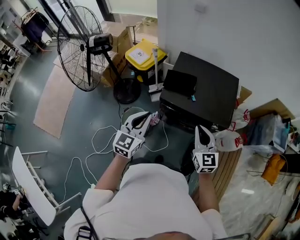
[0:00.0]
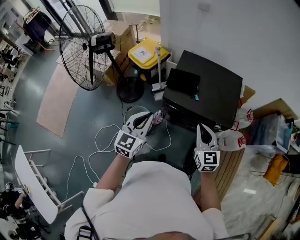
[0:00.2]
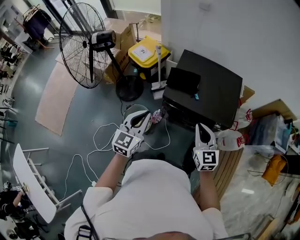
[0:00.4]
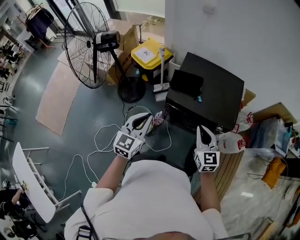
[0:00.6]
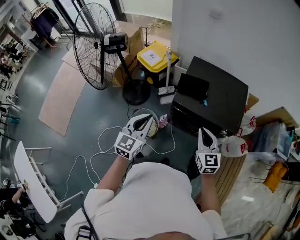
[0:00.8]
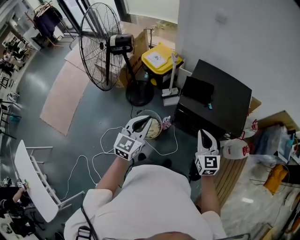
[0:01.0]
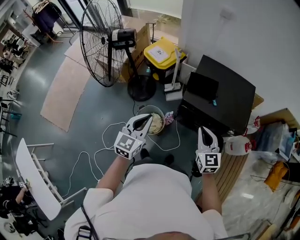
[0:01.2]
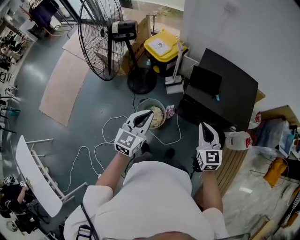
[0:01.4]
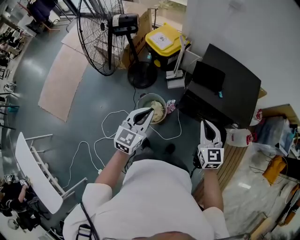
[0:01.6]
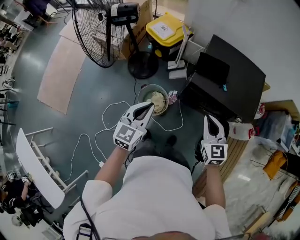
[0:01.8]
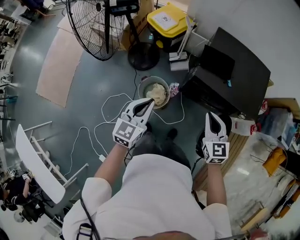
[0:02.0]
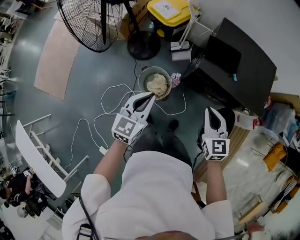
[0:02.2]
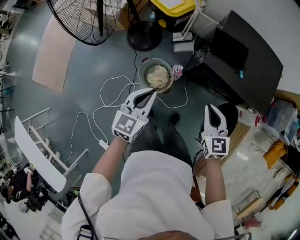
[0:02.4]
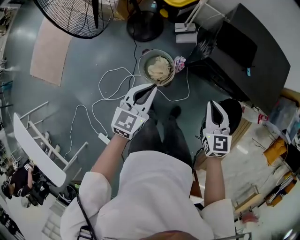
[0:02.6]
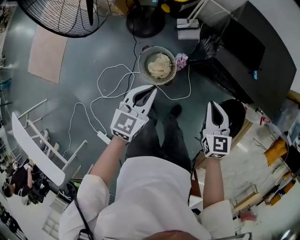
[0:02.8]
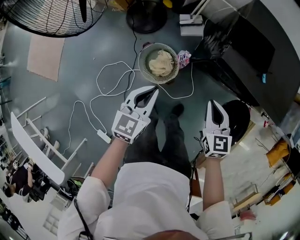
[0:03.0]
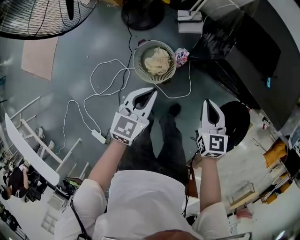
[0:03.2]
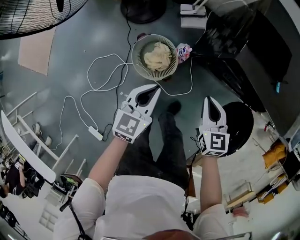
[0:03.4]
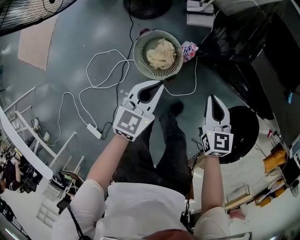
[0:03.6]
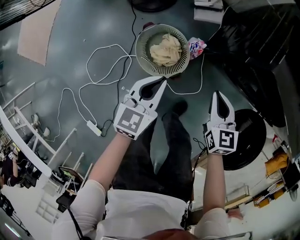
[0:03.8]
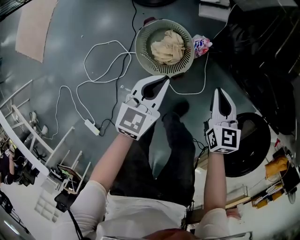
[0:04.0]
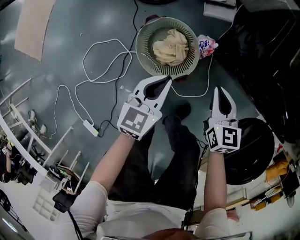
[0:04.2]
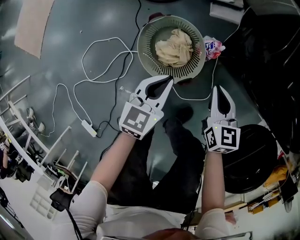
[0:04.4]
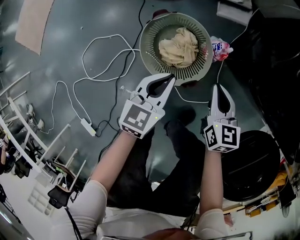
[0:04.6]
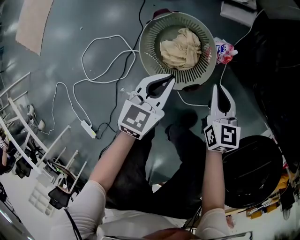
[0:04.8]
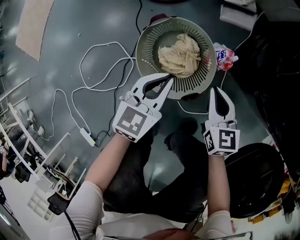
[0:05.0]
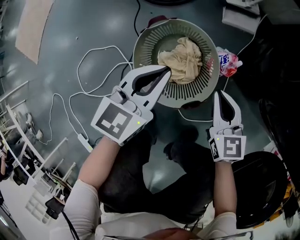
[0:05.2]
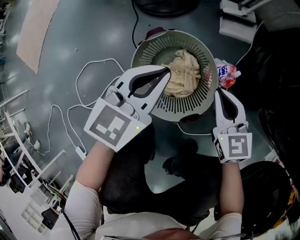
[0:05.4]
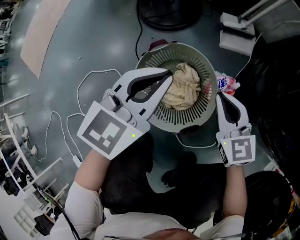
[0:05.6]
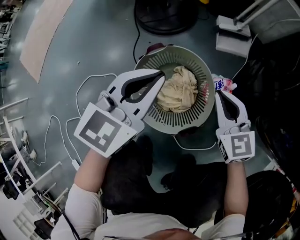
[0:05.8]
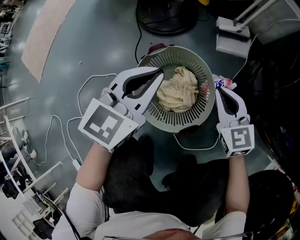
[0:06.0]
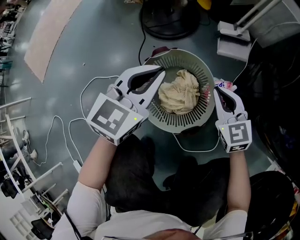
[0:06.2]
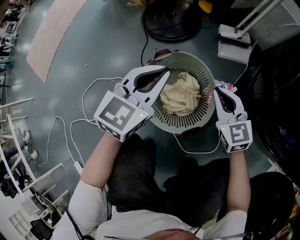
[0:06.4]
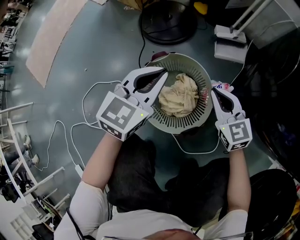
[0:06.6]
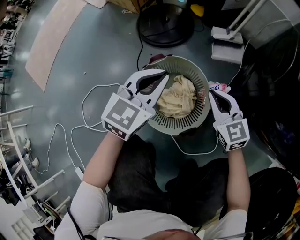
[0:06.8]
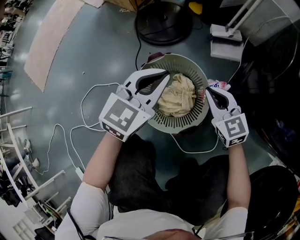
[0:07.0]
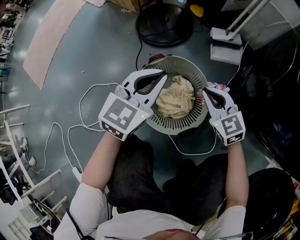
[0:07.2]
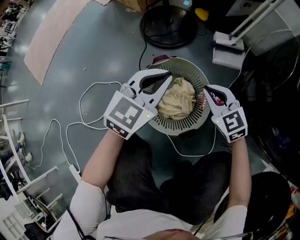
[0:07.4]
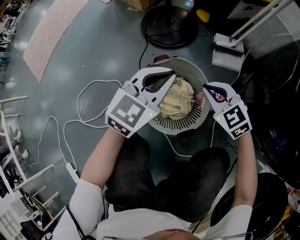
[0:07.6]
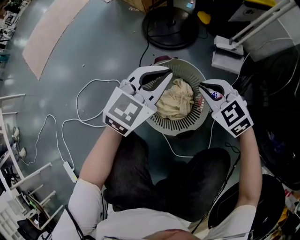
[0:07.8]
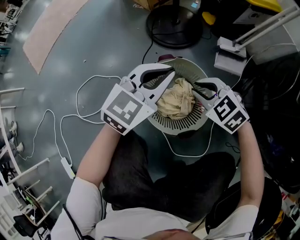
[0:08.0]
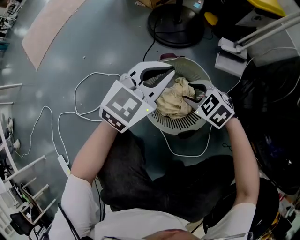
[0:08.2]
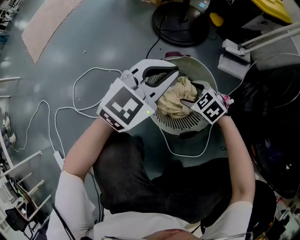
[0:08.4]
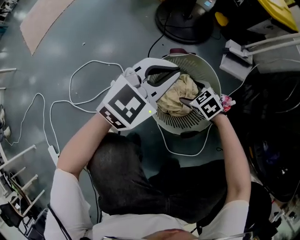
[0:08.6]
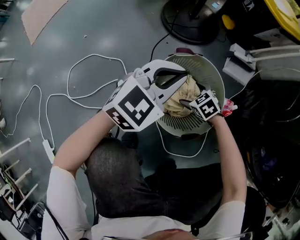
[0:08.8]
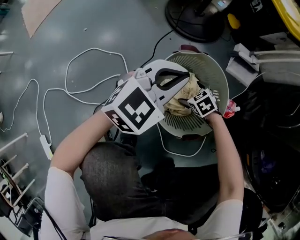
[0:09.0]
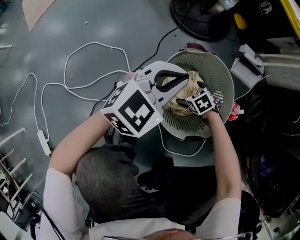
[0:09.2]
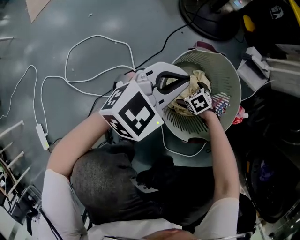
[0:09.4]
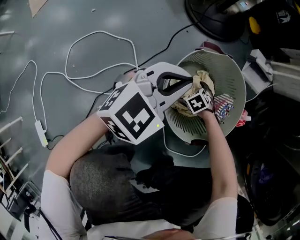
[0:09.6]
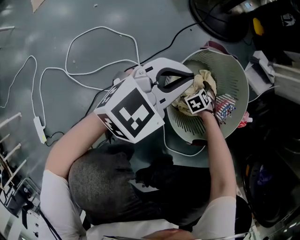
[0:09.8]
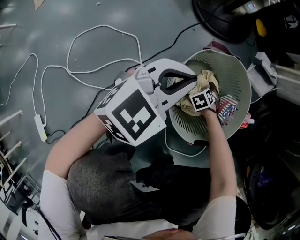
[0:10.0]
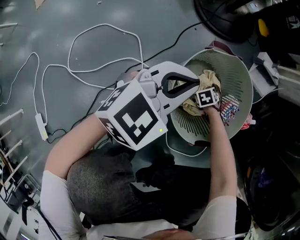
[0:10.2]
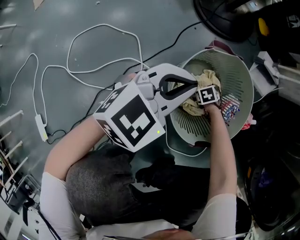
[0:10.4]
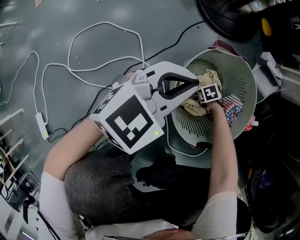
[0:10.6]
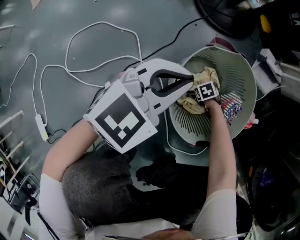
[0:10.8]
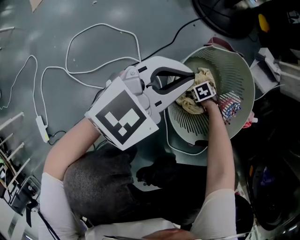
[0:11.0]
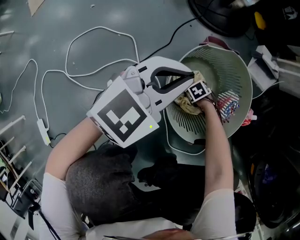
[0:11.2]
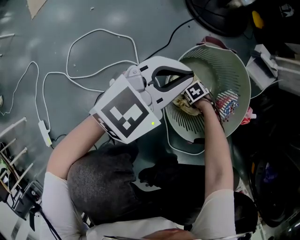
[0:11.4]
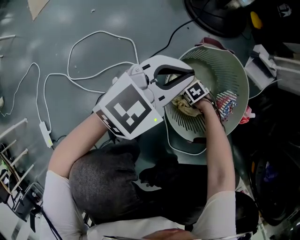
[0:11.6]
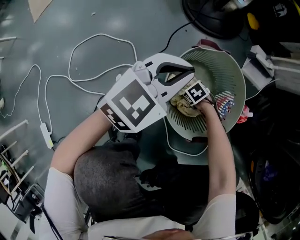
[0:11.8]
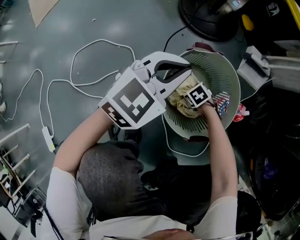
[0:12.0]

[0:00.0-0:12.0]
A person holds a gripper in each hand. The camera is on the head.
0:00.0 to 0:01.6: Both grippers travel together to the left, approximately 15 cm.
0:01.6 to 0:03.0: Both grippers travel together downward, approximately 25 cm.
0:03.0 to 0:04.4: Both grippers travel together downward, some 35 cm.
0:04.4 to 0:06.0: The left gripper goes roughly 10 cm forward and to the left. The right gripper goes roughly 15 cm downward and forward, and turns by about 30 degrees.
0:06.0 to 0:07.6: The right gripper heads to the left, covering about 5 cm, and turns by about 30 degrees.
0:07.6 to 0:09.0: The left gripper shifts roughly 10 cm to the left and downward. The right gripper is displaced downward by roughly 25 cm, points its fingers about 30 degrees further downward, and opens.
0:09.0 to 0:10.4: The right gripper shifts some 15 cm downward. Meanwhile the left gripper goes approximately 5 cm downward.
0:10.4 to 0:12.0: The left gripper ends up some 5 cm from where it was. Meanwhile the right gripper heads upward, covering about 10 cm, and closes up.

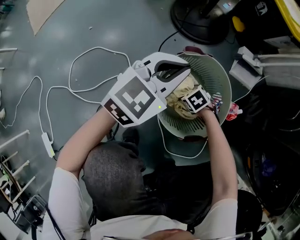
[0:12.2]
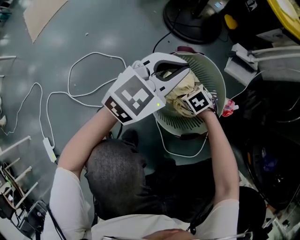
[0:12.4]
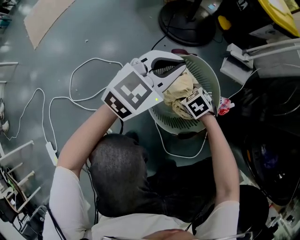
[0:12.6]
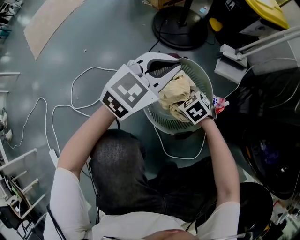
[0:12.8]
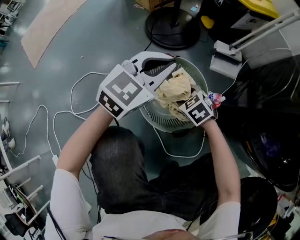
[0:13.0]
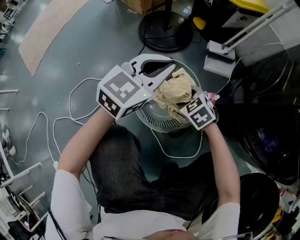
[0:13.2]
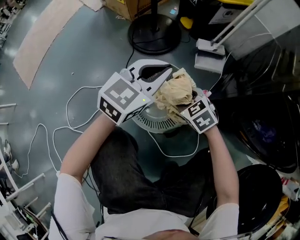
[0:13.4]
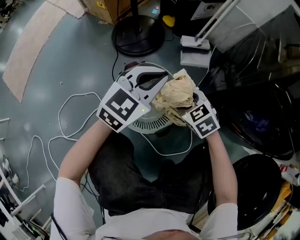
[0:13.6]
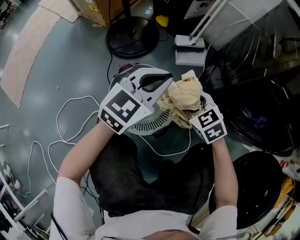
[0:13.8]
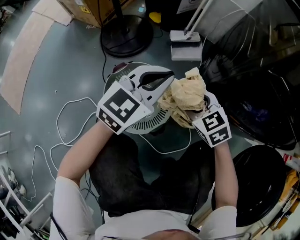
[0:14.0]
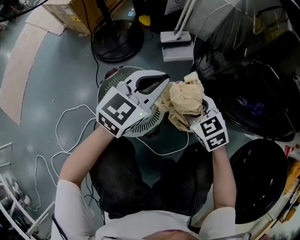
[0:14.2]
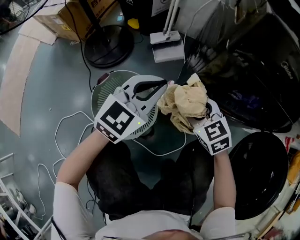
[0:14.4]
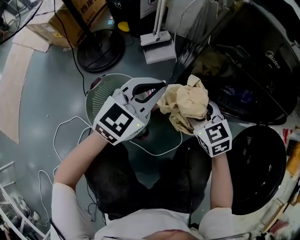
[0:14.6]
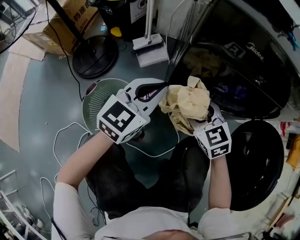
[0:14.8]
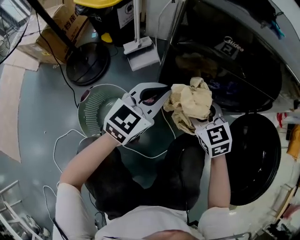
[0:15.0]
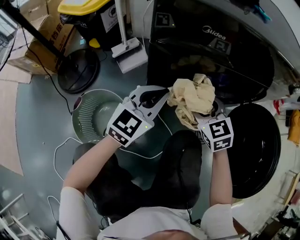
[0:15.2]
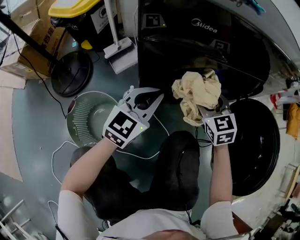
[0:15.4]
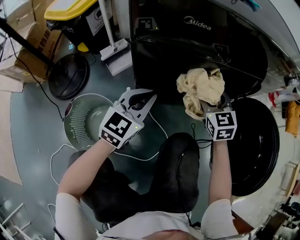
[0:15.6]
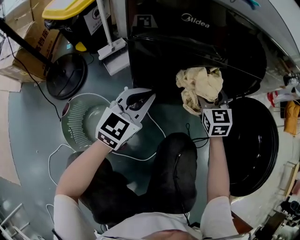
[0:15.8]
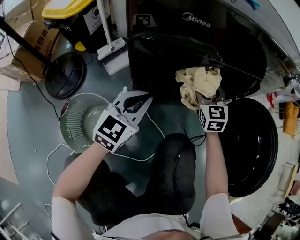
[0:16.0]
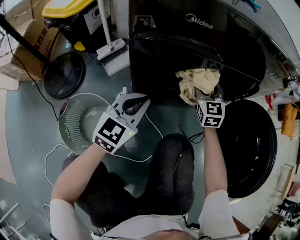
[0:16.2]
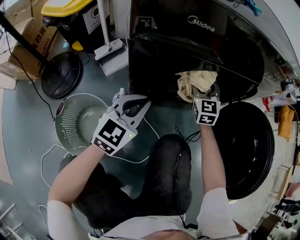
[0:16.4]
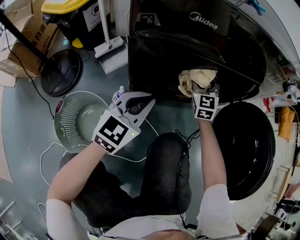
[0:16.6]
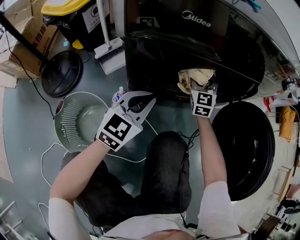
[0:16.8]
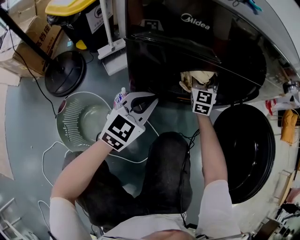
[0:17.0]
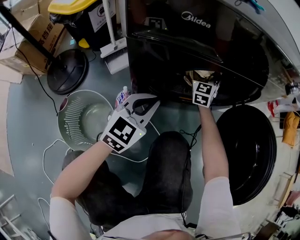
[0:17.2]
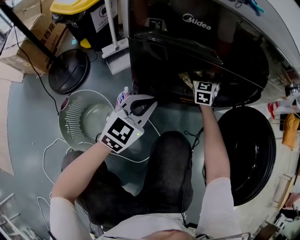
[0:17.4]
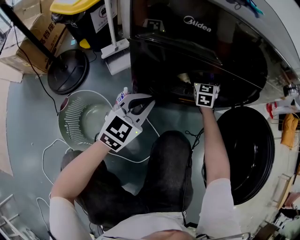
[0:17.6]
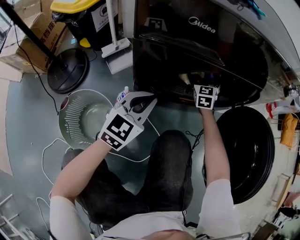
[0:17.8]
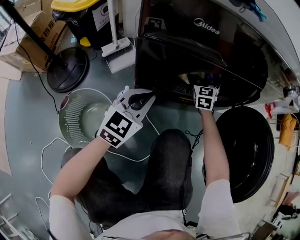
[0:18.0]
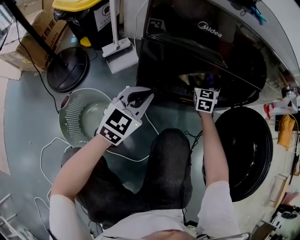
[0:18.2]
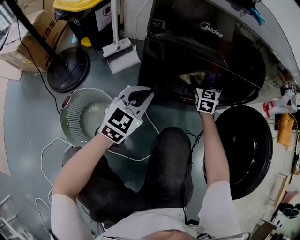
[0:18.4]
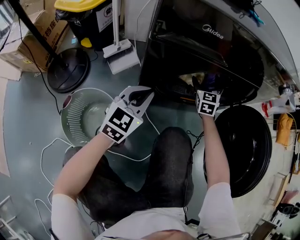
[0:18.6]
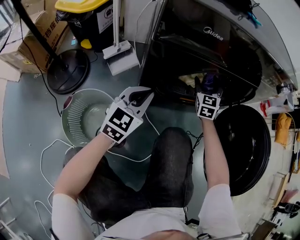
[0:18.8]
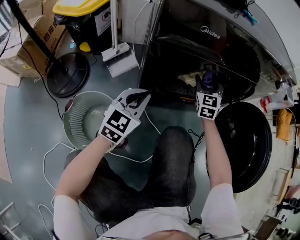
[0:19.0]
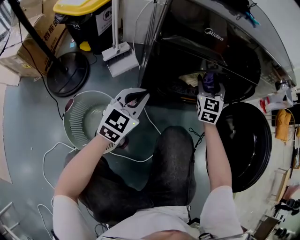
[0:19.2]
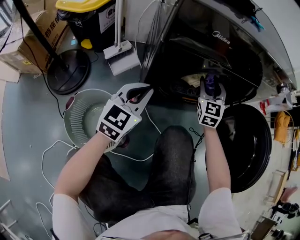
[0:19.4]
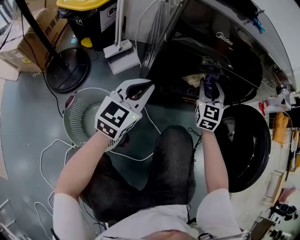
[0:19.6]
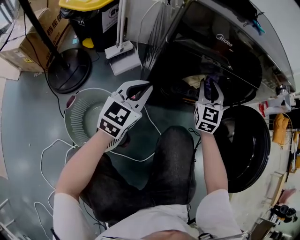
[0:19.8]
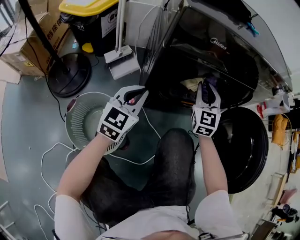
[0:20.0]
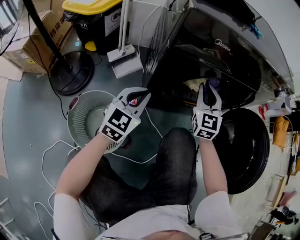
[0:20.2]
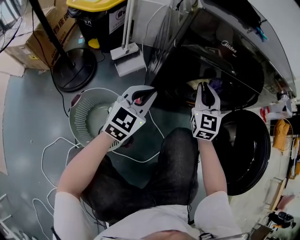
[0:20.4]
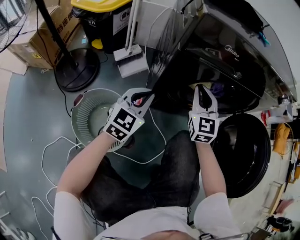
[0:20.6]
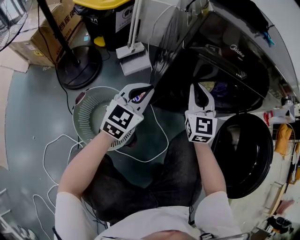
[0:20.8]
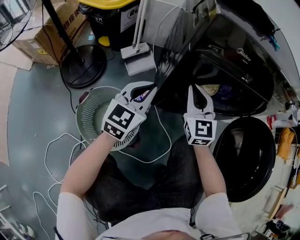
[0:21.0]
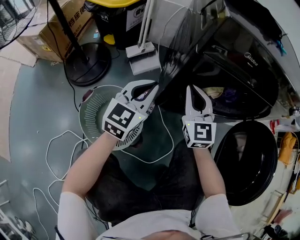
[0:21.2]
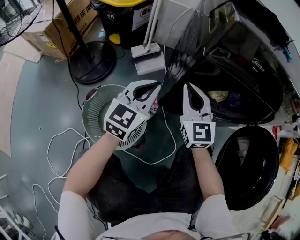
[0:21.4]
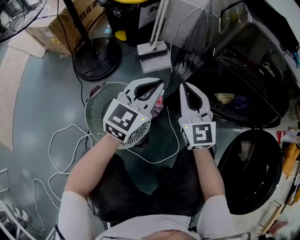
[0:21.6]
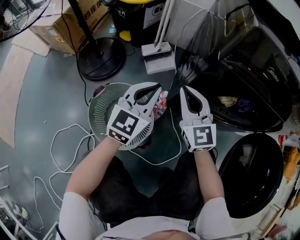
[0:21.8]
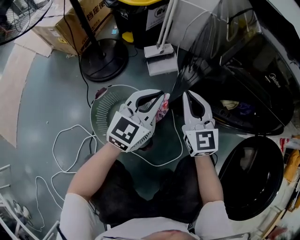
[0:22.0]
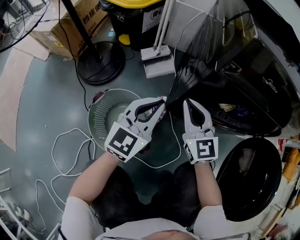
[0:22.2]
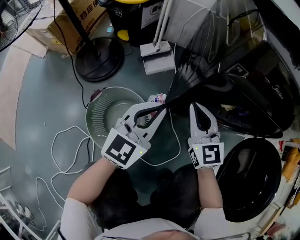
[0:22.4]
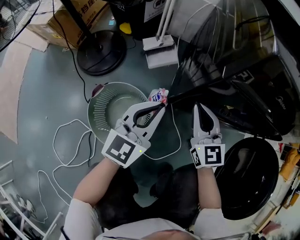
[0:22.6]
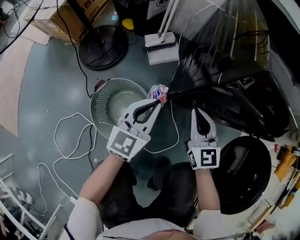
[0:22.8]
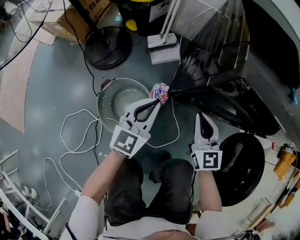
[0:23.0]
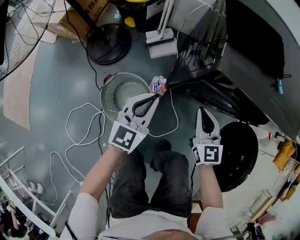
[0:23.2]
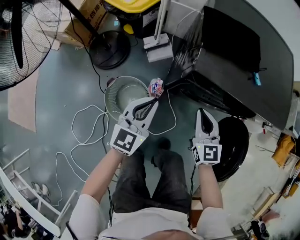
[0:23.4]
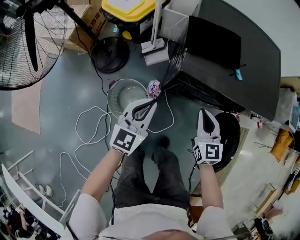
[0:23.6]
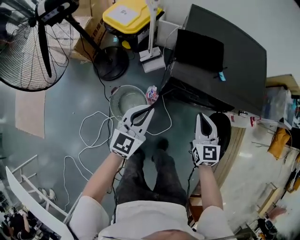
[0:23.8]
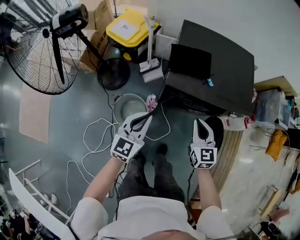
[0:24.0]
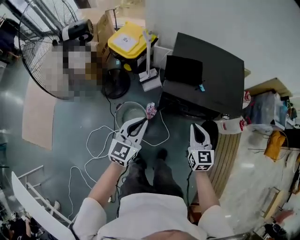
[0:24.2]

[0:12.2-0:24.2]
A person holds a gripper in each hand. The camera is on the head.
0:12.2 to 0:13.8: The right gripper travels upward by roughly 30 cm, and swivels approximately 40 degrees, while the left gripper moves some 20 cm.
0:13.8 to 0:15.2: The right gripper changes place by about 30 cm, and rotates approximately 40 degrees. The left gripper changes place by roughly 25 cm, and turns by some 20 degrees.
0:15.2 to 0:16.6: The right gripper moves forward and to the right, some 15 cm, and swivels roughly 30 degrees.
0:16.6 to 0:18.2: The right gripper changes place by approximately 5 cm, and opens up.
0:18.2 to 0:19.8: The left gripper is displaced to the left by approximately 5 cm, while the right gripper shifts some 15 cm upward and backward, and closes.
0:19.8 to 0:21.2: The left gripper moves to the left, roughly 5 cm. Meanwhile the right gripper travels to the left and backward by about 20 cm, and changes its angle by approximately 20 degrees.
0:21.2 to 0:22.6: The right gripper goes to the left and returns, about 10 cm each way.
0:22.6 to 0:24.2: The two grippers go approximately 50 cm upward.
